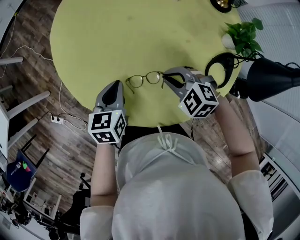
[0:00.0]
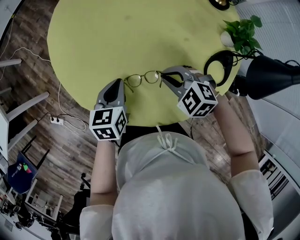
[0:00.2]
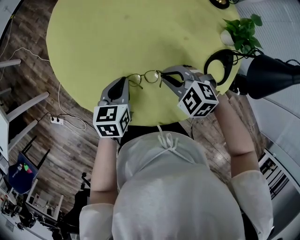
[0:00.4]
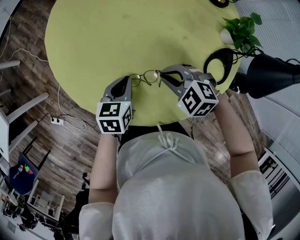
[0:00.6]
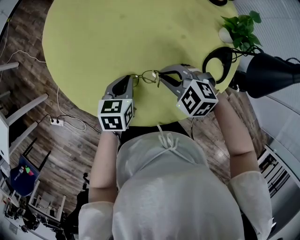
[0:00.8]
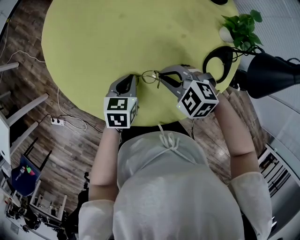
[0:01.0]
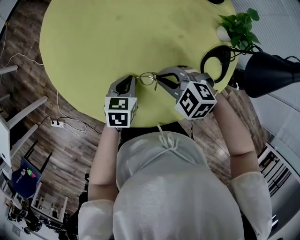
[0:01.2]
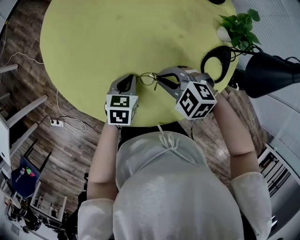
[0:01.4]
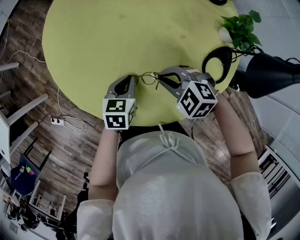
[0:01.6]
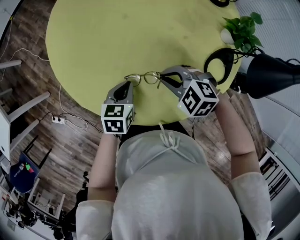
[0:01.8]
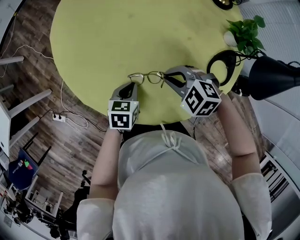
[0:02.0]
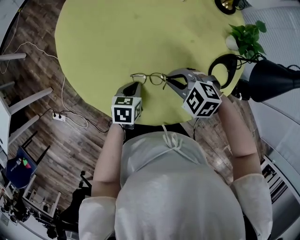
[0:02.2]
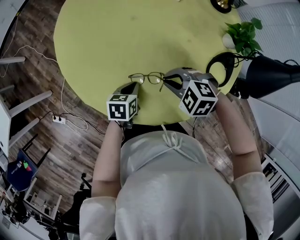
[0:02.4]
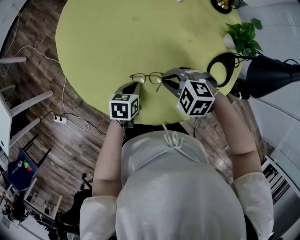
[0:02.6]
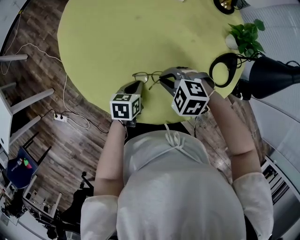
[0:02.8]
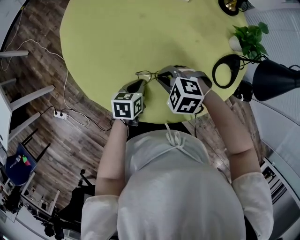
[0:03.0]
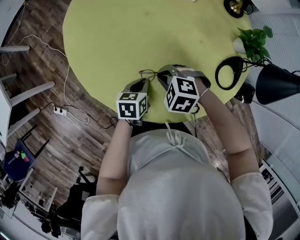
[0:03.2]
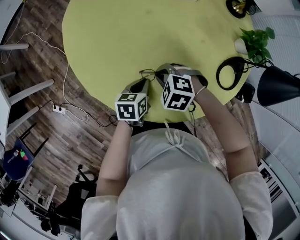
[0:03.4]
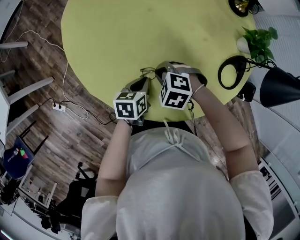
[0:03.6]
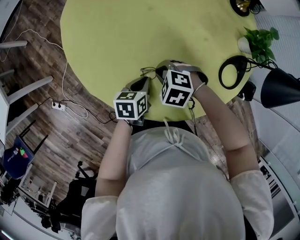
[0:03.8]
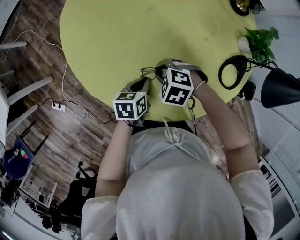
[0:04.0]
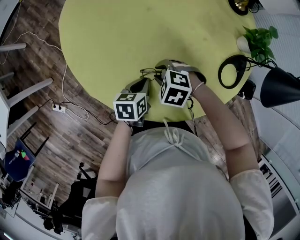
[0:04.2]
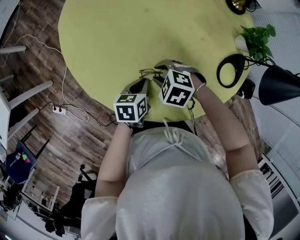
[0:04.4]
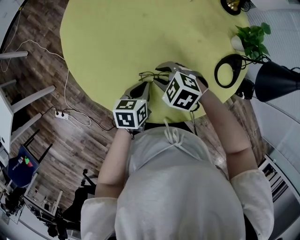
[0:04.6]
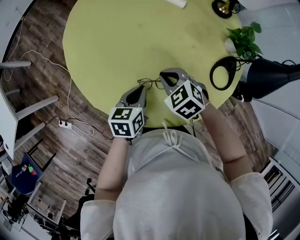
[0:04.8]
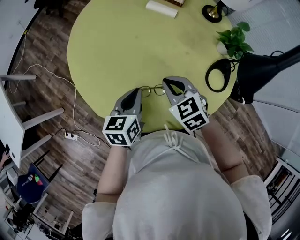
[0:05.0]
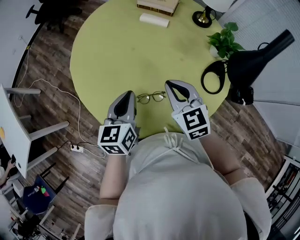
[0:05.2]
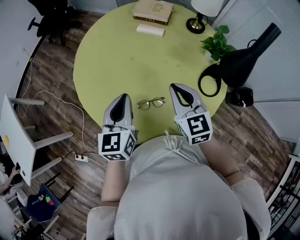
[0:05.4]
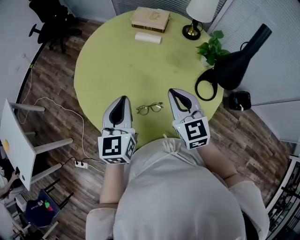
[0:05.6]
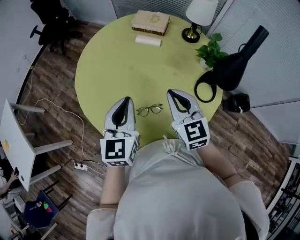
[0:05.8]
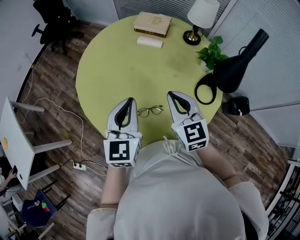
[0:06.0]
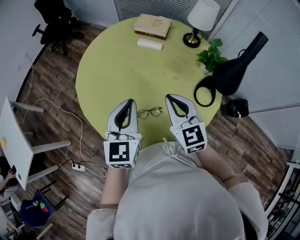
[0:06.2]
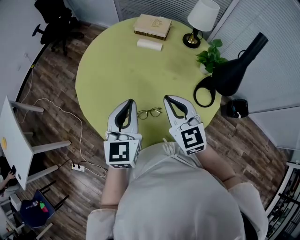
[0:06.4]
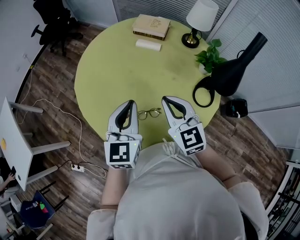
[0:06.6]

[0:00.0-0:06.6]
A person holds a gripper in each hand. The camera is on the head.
0.0 to 1.6 s: The left gripper moves to the right and downward, roughly 10 cm.
1.6 to 3.2 s: The left gripper changes place by approximately 5 cm. The right gripper goes some 5 cm to the left.
3.2 to 5.0 s: Both grippers move upward, roughly 15 cm. The right gripper swivels some 50 degrees, and opens, then closes again.
5.0 to 6.6 s: The grippers both shift upward by about 15 cm. The right gripper swivels roughly 30 degrees, while the left gripper swivels roughly 30 degrees.

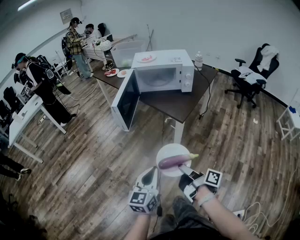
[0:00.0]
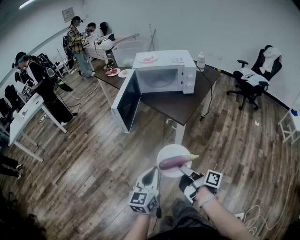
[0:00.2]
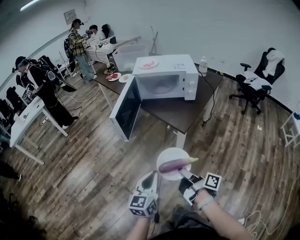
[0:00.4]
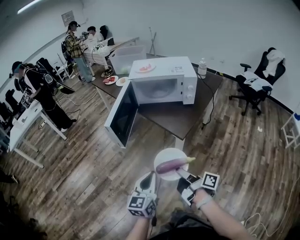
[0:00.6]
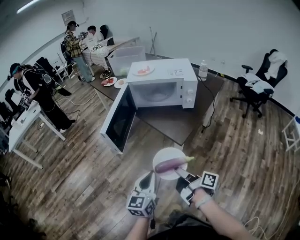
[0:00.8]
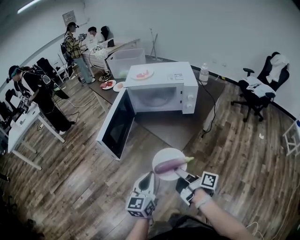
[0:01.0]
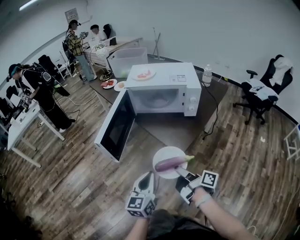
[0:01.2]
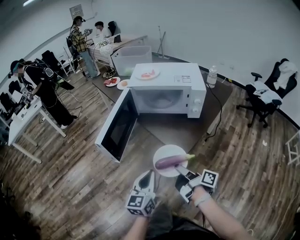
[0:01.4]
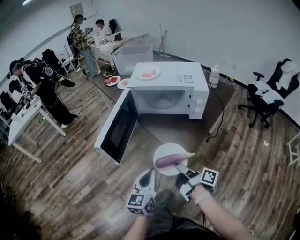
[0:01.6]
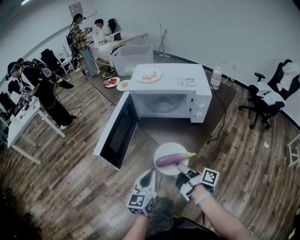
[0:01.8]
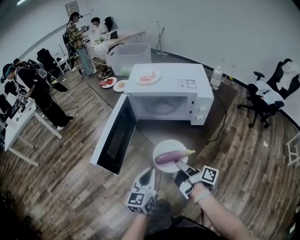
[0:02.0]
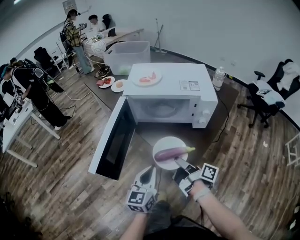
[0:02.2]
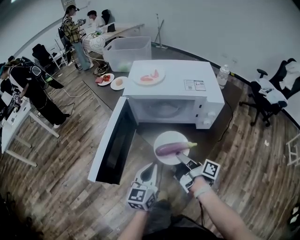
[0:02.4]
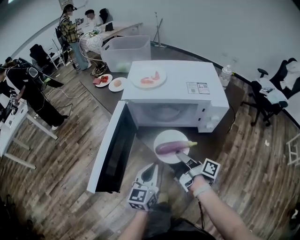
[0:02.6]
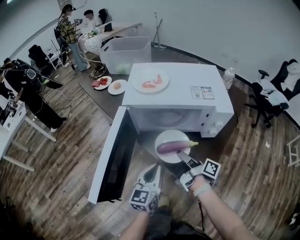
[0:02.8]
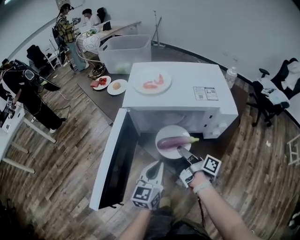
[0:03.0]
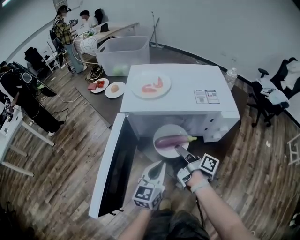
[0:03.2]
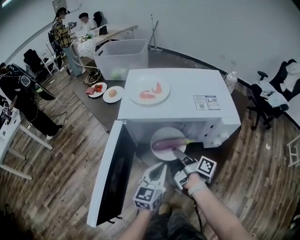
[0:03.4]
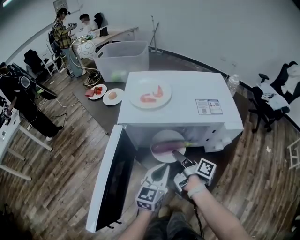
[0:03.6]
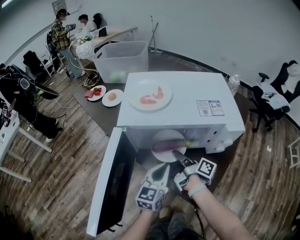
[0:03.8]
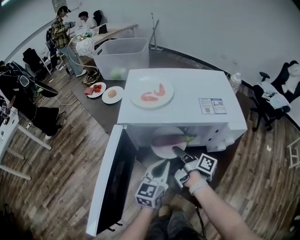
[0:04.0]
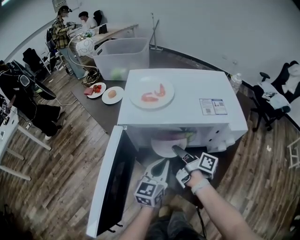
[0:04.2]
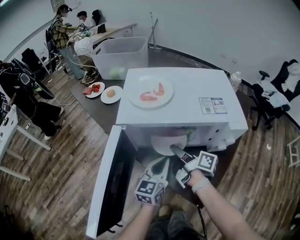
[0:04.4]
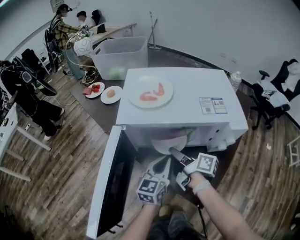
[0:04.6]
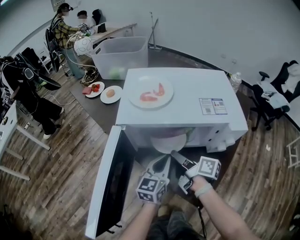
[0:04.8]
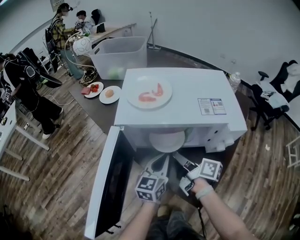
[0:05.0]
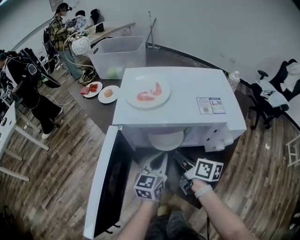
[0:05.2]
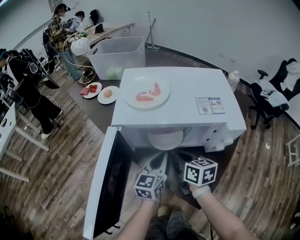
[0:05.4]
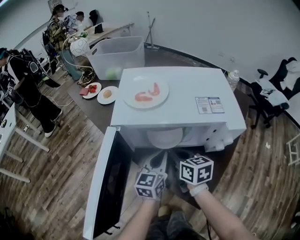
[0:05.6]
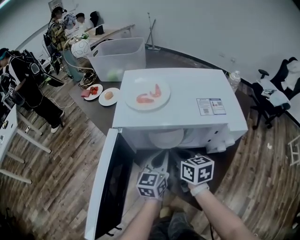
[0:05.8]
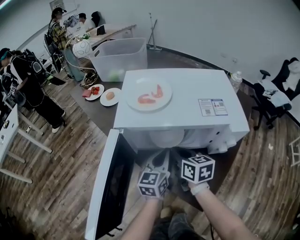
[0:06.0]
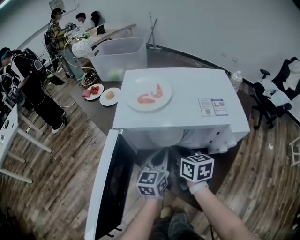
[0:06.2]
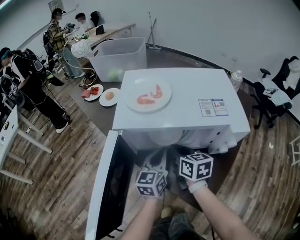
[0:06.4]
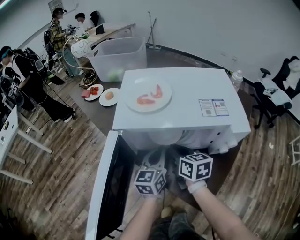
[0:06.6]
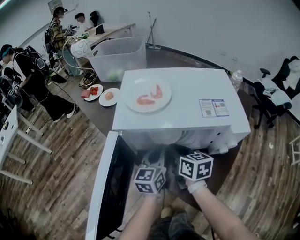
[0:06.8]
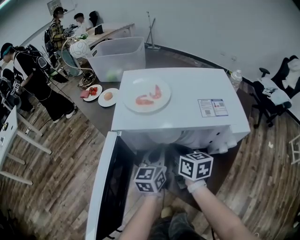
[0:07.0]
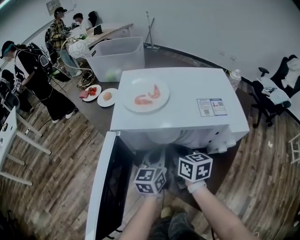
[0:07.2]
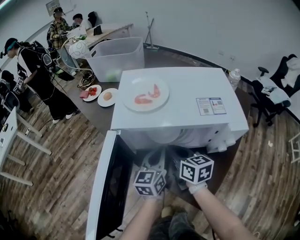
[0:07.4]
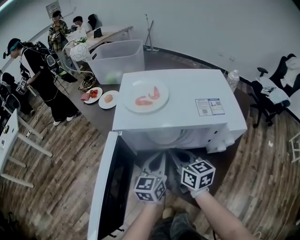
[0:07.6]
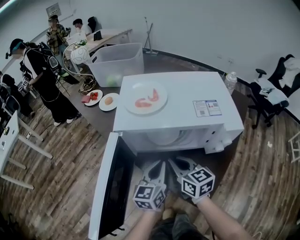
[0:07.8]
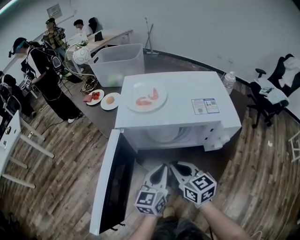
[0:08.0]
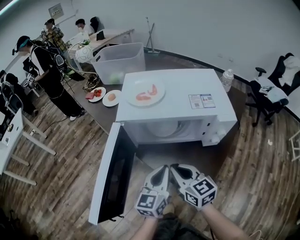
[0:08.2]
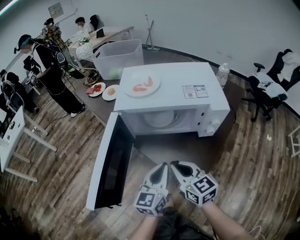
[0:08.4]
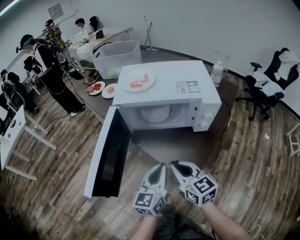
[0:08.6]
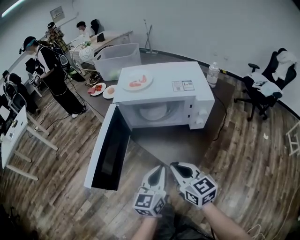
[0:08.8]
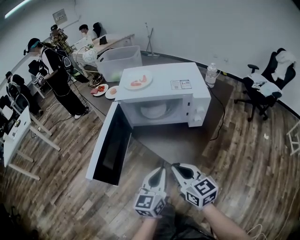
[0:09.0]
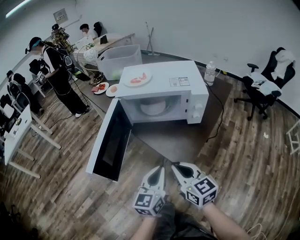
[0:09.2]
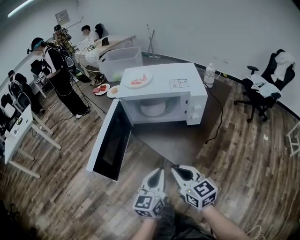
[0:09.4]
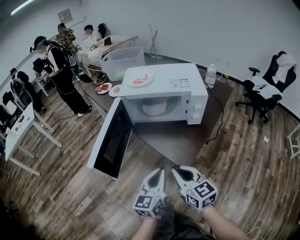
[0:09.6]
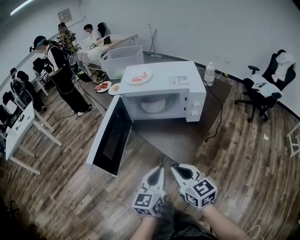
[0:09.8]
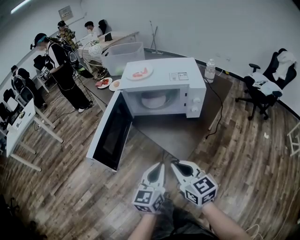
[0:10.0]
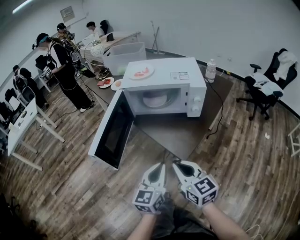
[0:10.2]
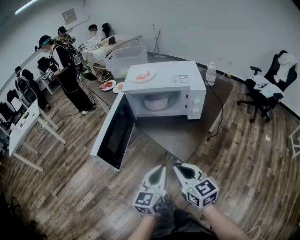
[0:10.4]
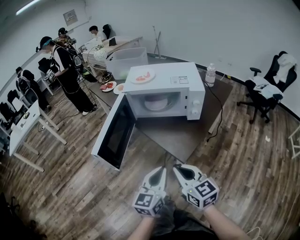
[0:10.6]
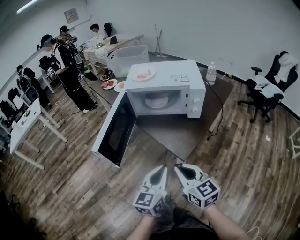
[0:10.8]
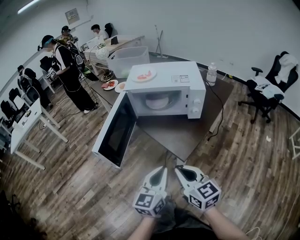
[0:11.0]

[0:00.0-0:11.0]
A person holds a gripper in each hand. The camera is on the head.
0.0 to 1.6 s: The two grippers go some 25 cm forward.
1.6 to 3.2 s: Both grippers travel together forward, roughly 25 cm.
3.2 to 4.8 s: The left gripper shifts about 10 cm forward; the right gripper changes its angle by approximately 20 degrees, and opens up.
4.8 to 6.2 s: The right gripper twists approximately 40 degrees counterclockwise, seen from behind, and closes up.
6.2 to 7.8 s: The left gripper ends up about 5 cm from where it was. The right gripper ends up approximately 5 cm from where it was.
7.8 to 9.4 s: The grippers both shift backward by roughly 25 cm.
9.4 to 11.0 s: Both grippers move backward, about 5 cm.

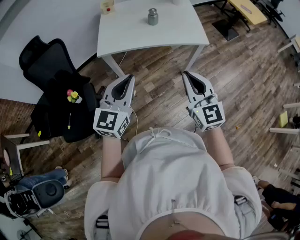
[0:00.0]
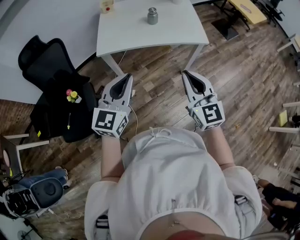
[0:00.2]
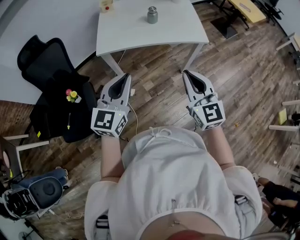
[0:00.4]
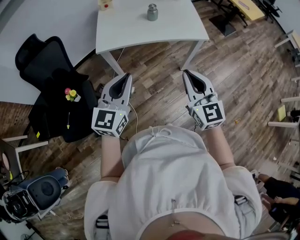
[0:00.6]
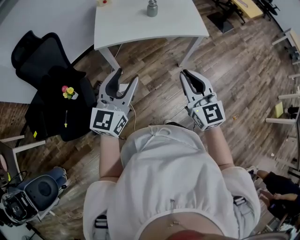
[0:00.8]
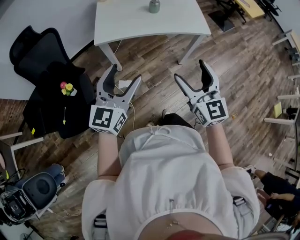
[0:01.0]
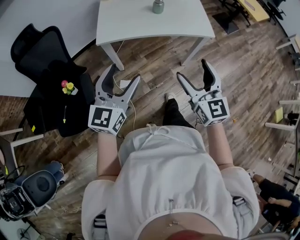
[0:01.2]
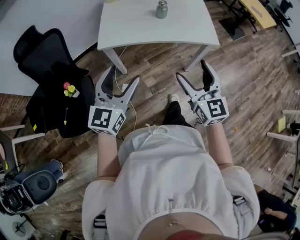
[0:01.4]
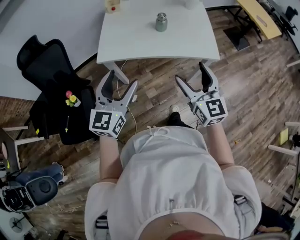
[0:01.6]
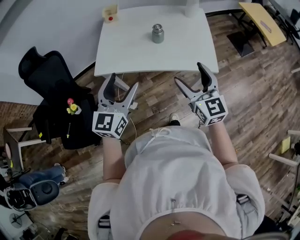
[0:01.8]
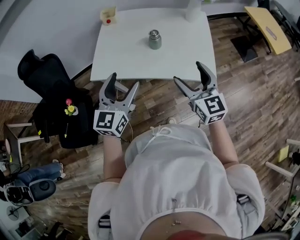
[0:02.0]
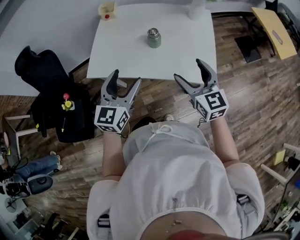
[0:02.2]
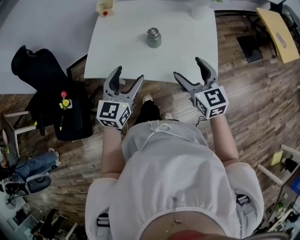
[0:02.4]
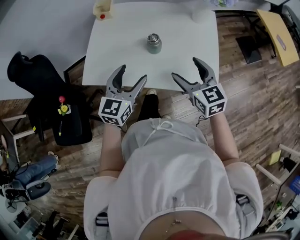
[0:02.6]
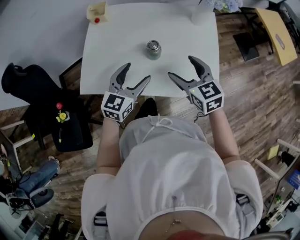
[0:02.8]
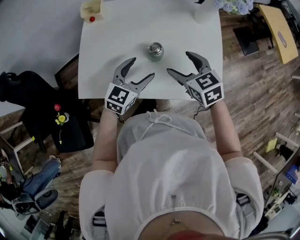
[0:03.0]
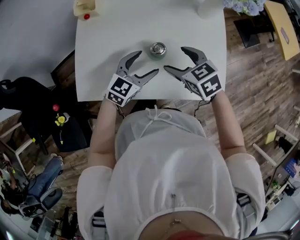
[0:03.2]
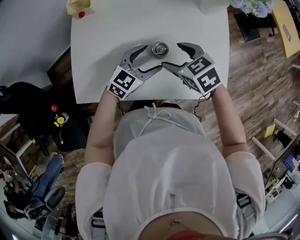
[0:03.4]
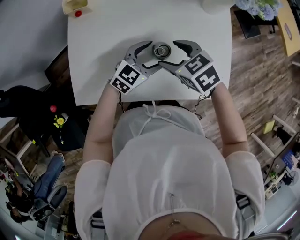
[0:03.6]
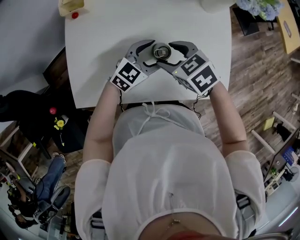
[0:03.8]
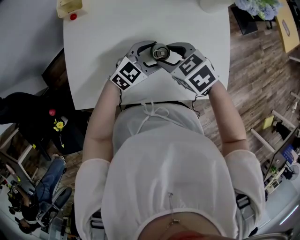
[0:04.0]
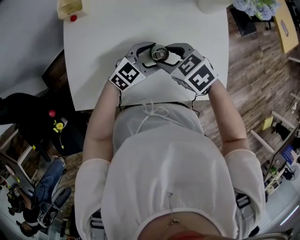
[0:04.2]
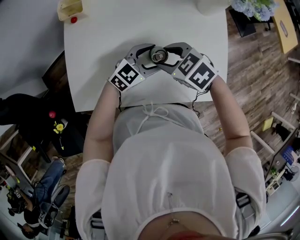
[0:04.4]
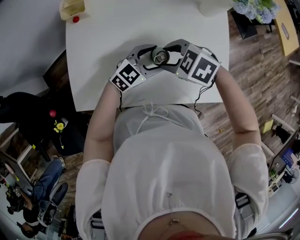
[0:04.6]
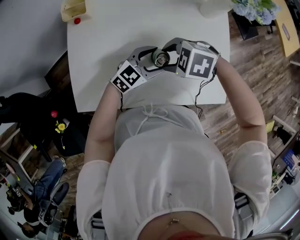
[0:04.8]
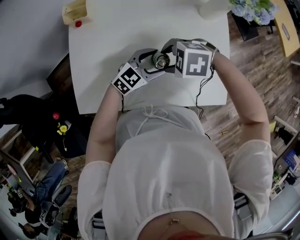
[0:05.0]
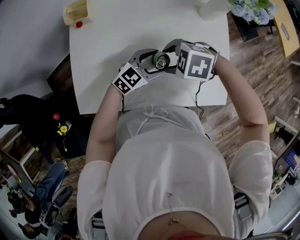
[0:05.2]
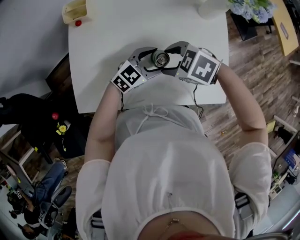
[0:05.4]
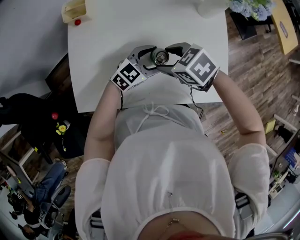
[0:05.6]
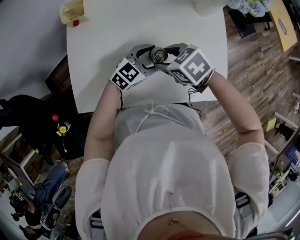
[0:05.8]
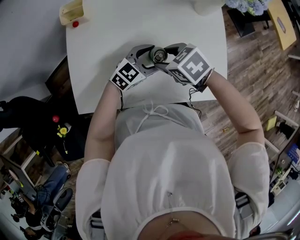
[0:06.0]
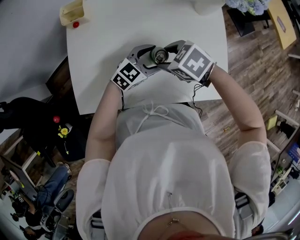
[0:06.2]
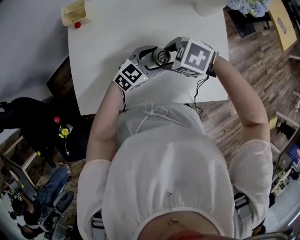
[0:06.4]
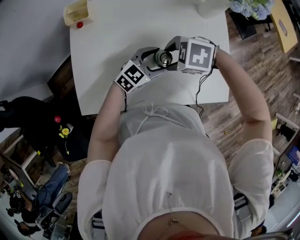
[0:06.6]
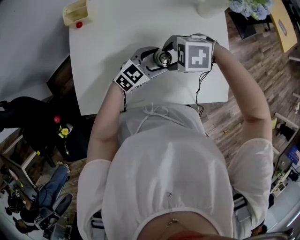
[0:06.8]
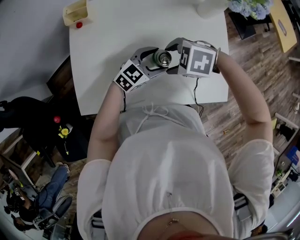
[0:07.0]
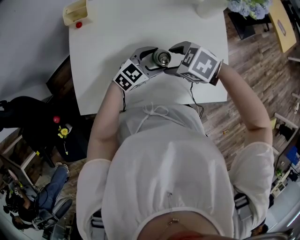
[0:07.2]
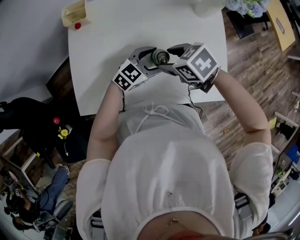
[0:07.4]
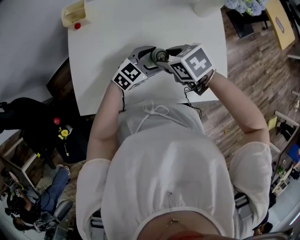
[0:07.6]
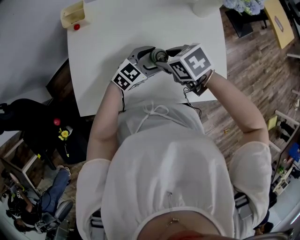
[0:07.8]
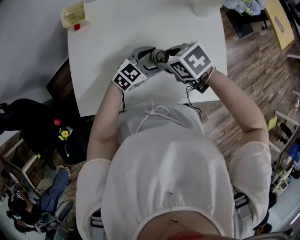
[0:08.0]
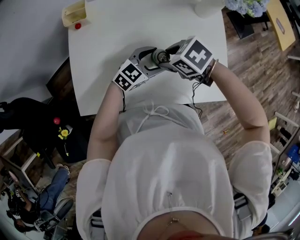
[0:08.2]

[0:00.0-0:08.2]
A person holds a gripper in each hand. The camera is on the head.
0.0 to 1.6 s: Both grippers move forward, about 15 cm. The right gripper opens. The left gripper opens.
1.6 to 3.2 s: The pair of grippers is taken forward, some 40 cm. The left gripper is displaced downward by approximately 20 cm, and swivels approximately 30 degrees. Meanwhile the right gripper points its fingers roughly 40 degrees further downward.
3.2 to 5.0 s: The left gripper changes place by roughly 10 cm. The right gripper shifts by some 5 cm, changes its angle by roughly 50 degrees, and closes.
6.6 to 8.2 s: The right gripper rotates some 30 degrees.
